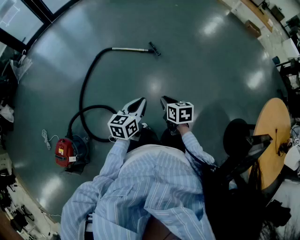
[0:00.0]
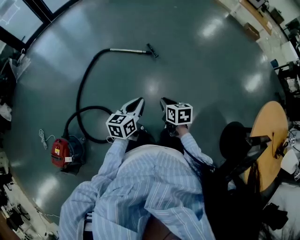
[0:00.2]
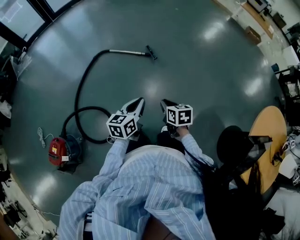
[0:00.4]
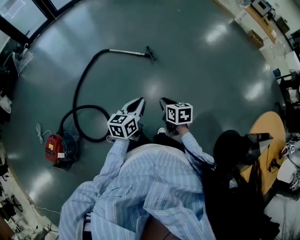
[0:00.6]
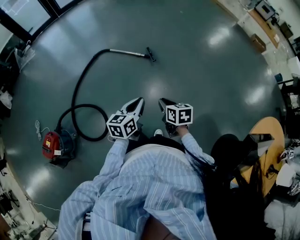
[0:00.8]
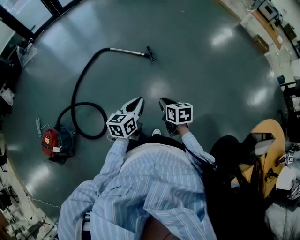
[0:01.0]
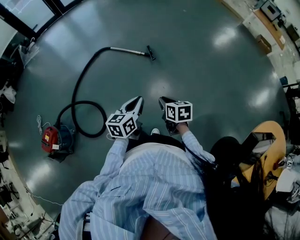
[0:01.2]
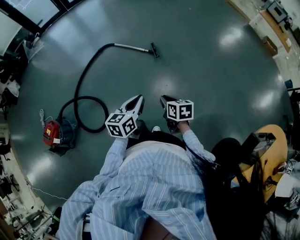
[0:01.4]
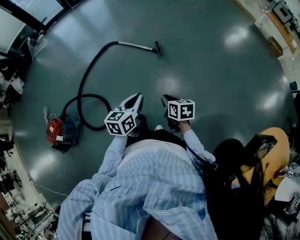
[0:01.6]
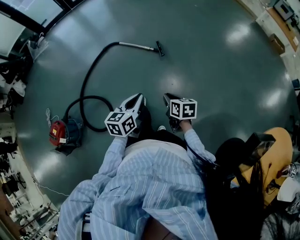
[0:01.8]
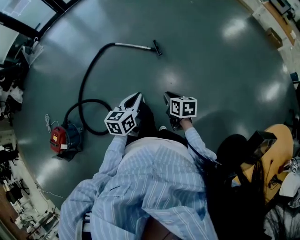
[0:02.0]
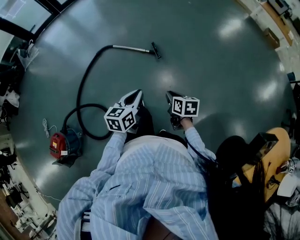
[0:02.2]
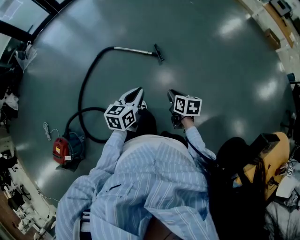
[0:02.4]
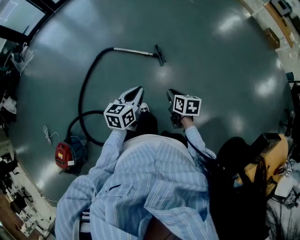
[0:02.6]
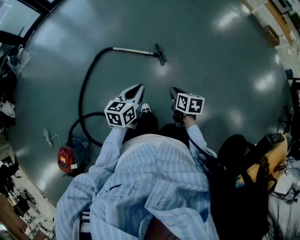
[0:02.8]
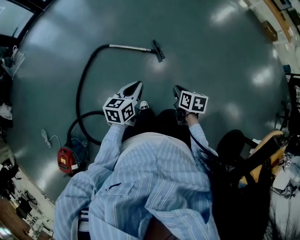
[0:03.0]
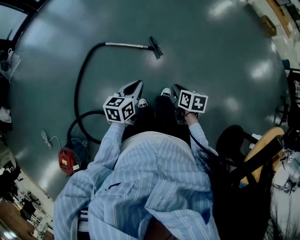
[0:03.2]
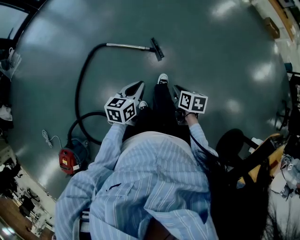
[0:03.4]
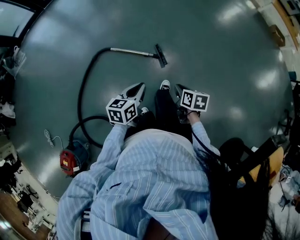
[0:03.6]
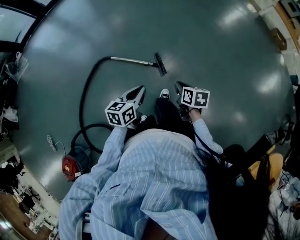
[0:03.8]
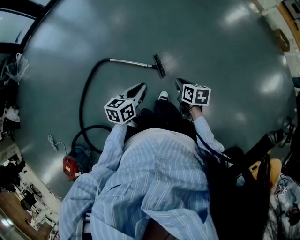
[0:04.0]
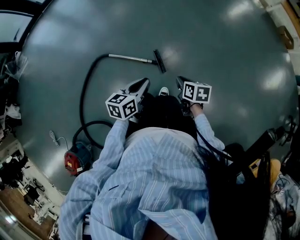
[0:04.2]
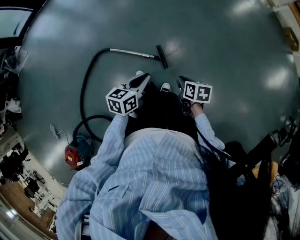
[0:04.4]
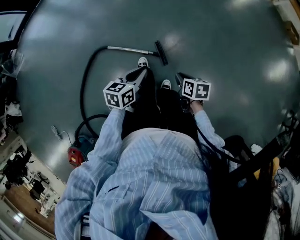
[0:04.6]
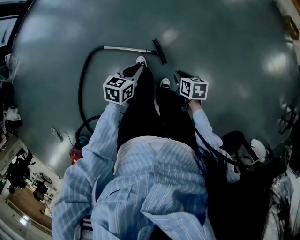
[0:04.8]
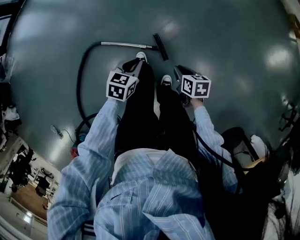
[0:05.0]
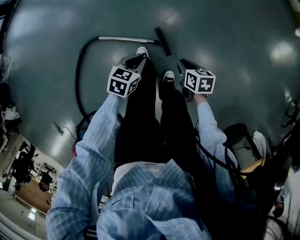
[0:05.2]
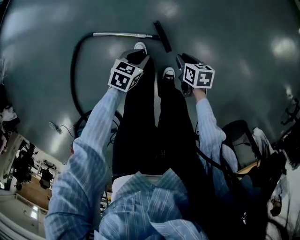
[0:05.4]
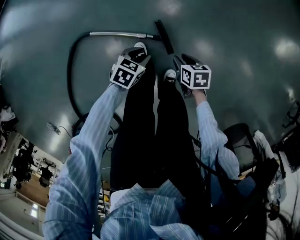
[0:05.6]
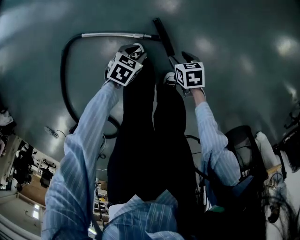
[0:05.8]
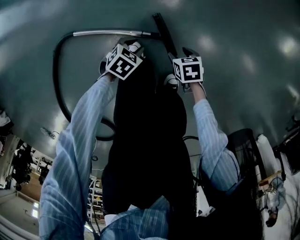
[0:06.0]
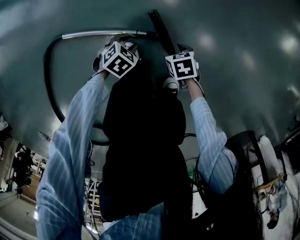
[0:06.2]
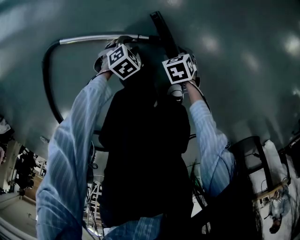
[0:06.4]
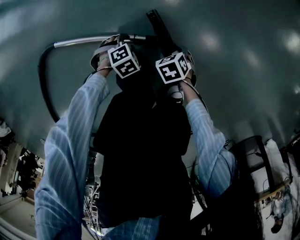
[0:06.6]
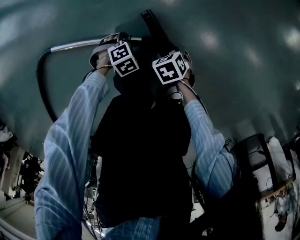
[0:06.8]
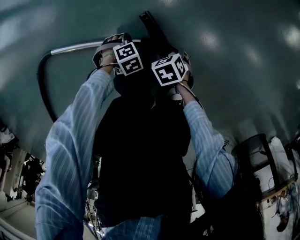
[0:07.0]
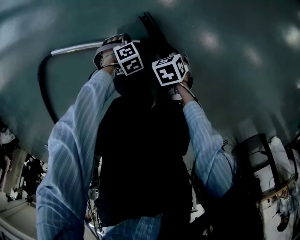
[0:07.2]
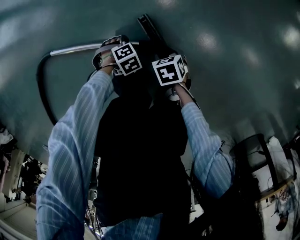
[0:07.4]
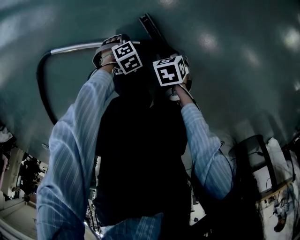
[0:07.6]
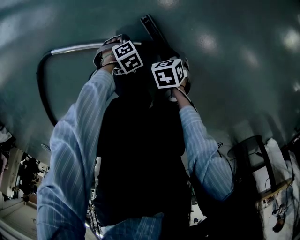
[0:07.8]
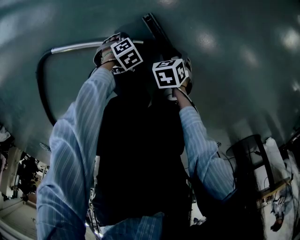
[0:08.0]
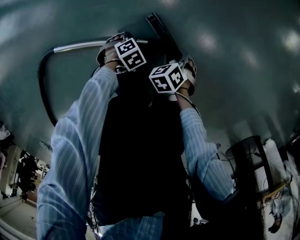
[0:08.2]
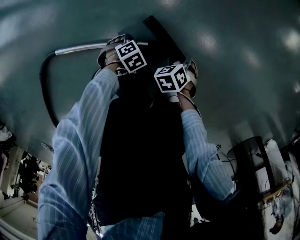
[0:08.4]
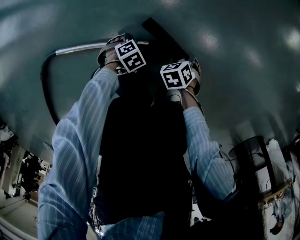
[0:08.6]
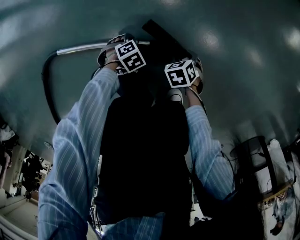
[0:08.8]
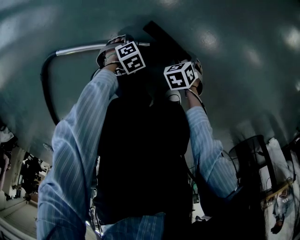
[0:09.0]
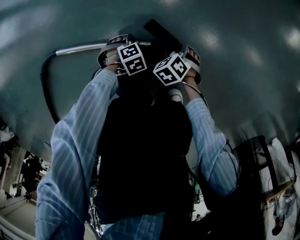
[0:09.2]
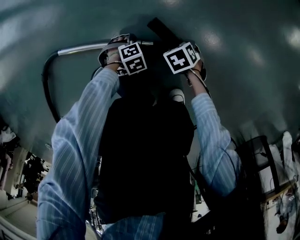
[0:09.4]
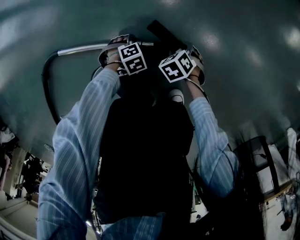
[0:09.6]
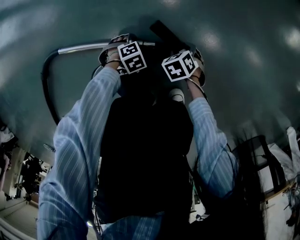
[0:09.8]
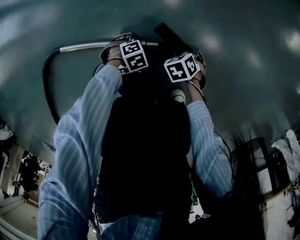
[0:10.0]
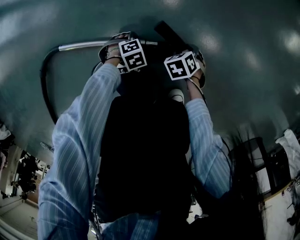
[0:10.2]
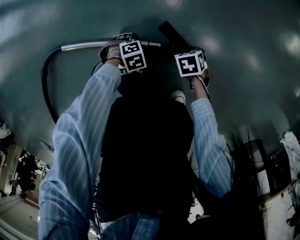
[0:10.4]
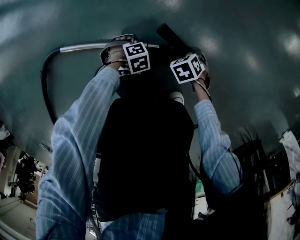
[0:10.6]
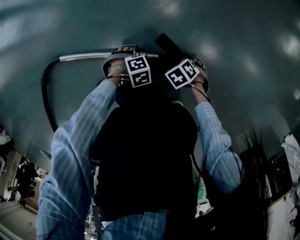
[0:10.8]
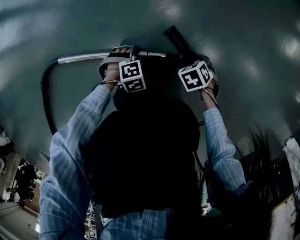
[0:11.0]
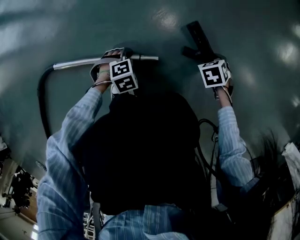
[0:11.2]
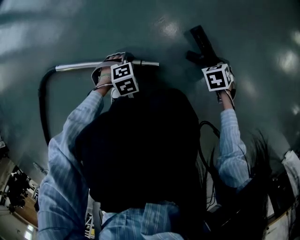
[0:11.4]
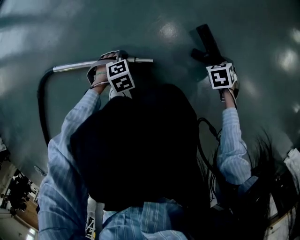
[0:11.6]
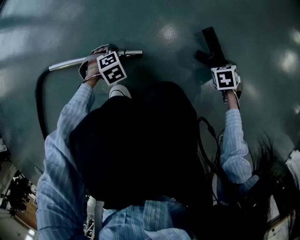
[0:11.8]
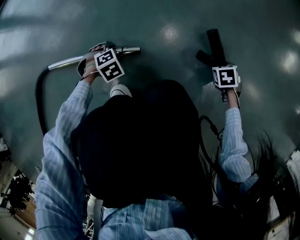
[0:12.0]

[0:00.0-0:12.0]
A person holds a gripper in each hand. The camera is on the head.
0:00.0 to 0:01.6: Both grippers move to the right, about 20 cm.
0:01.6 to 0:03.0: The grippers both shift forward by about 30 cm. The right gripper rotates approximately 20 degrees.
0:03.0 to 0:04.4: The two grippers go approximately 30 cm forward.
0:04.4 to 0:06.0: The two grippers go approximately 50 cm downward. The right gripper rotates some 20 degrees, and opens up. The left gripper points its fingers some 30 degrees further downward, and opens.
0:06.0 to 0:07.6: Both grippers move downward, roughly 20 cm. The left gripper changes its angle by about 40 degrees.
0:09.0 to 0:10.4: The grippers stay close to where they were, moving slightly.
0:10.4 to 0:12.0: The left gripper changes place by roughly 10 cm; the right gripper shifts by about 25 cm.

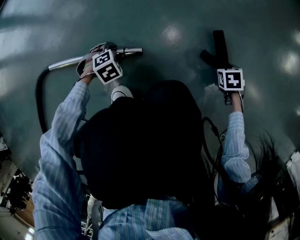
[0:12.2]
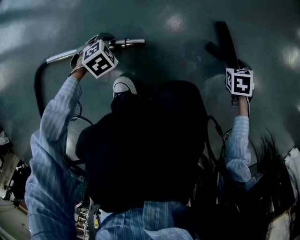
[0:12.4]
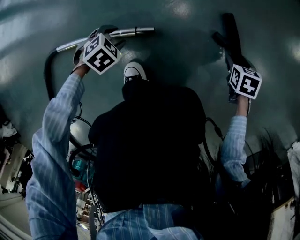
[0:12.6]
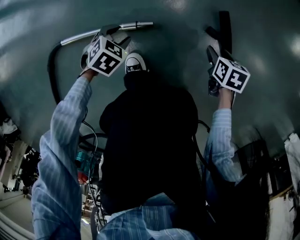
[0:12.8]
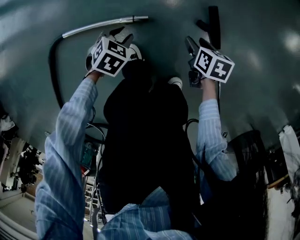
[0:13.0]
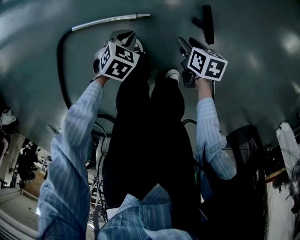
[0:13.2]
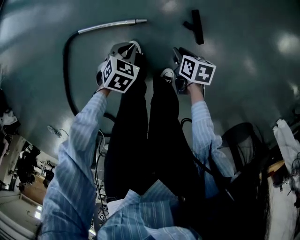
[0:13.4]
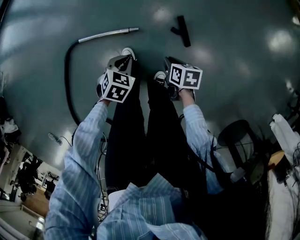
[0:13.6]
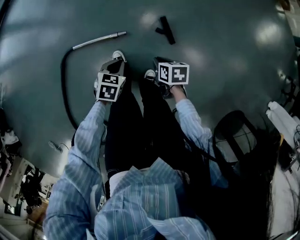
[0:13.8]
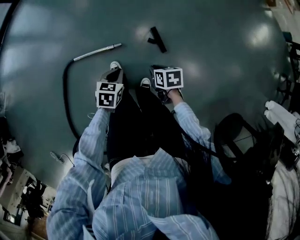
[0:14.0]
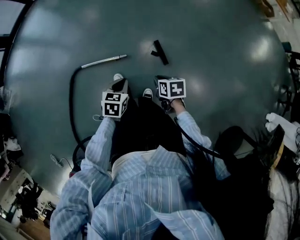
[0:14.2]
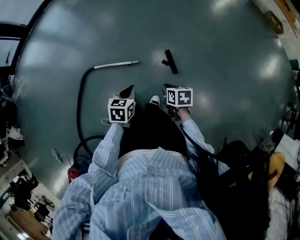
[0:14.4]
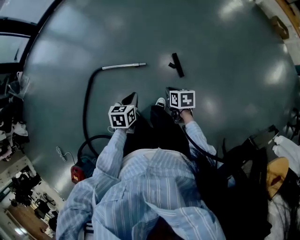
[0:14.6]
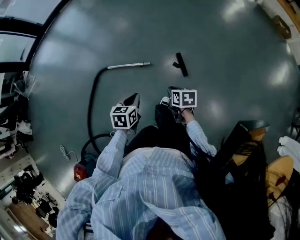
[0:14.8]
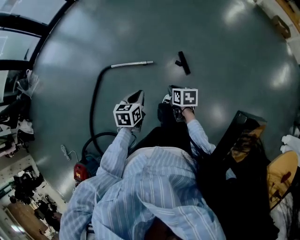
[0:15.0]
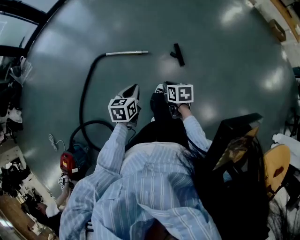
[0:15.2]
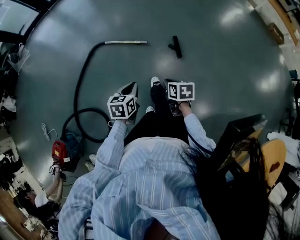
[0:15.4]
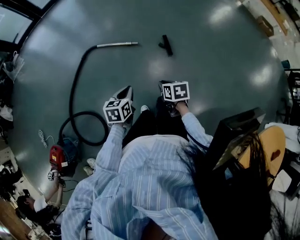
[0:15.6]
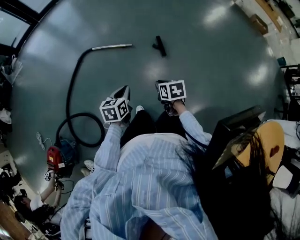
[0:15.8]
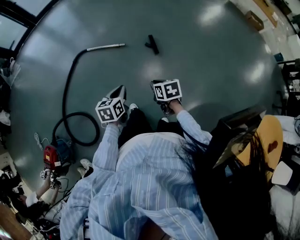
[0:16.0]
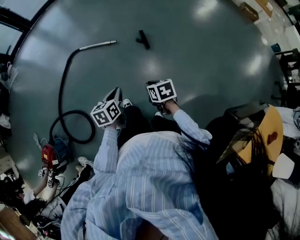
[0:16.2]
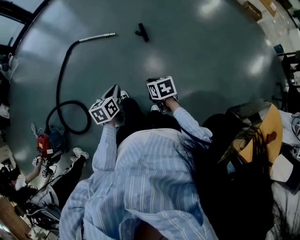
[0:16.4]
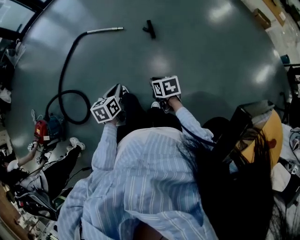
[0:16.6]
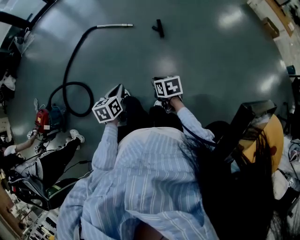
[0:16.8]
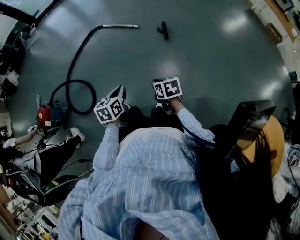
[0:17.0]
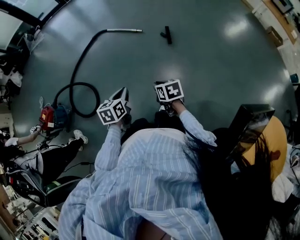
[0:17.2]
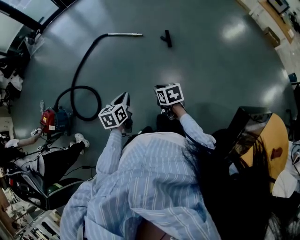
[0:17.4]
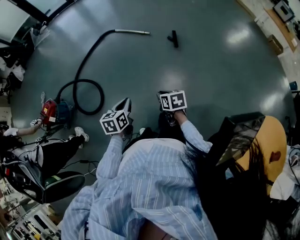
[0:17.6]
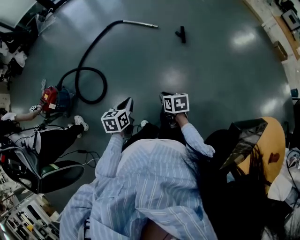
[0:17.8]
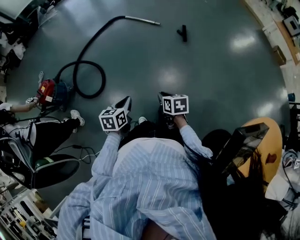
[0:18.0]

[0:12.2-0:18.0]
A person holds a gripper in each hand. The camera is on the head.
0:12.2 to 0:13.6: The two grippers go about 50 cm upward. The right gripper swivels about 40 degrees, and closes up, while the left gripper swivels about 40 degrees, and closes up.
0:13.6 to 0:15.0: The grippers both shift upward and backward by roughly 35 cm. The left gripper changes its angle by about 40 degrees.
0:15.0 to 0:16.6: The two grippers travel together, backward, approximately 50 cm. The left gripper changes its angle by about 20 degrees.
0:16.6 to 0:18.0: Both grippers travel together to the left and backward, about 30 cm.

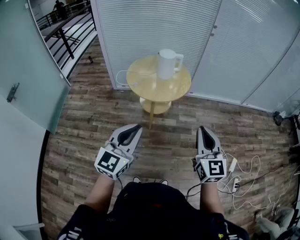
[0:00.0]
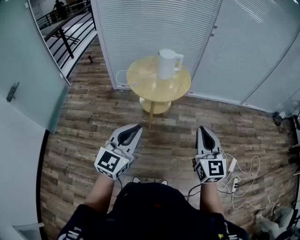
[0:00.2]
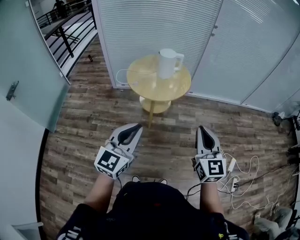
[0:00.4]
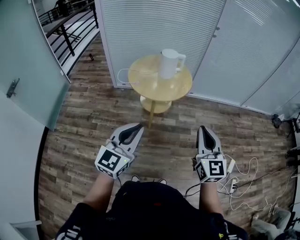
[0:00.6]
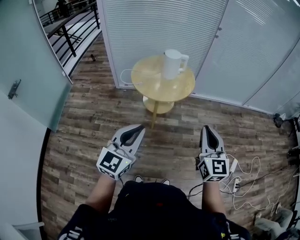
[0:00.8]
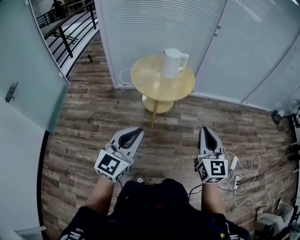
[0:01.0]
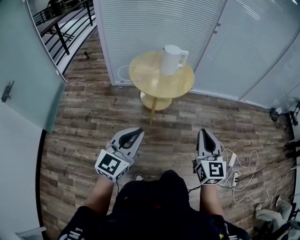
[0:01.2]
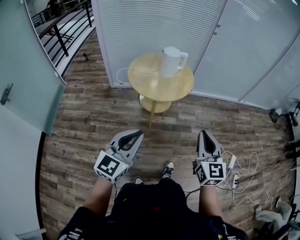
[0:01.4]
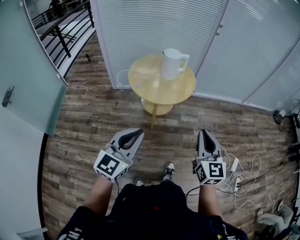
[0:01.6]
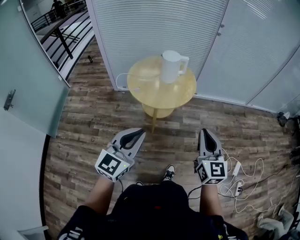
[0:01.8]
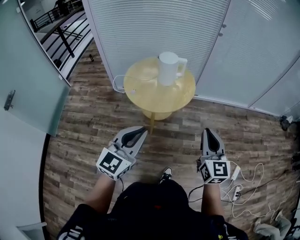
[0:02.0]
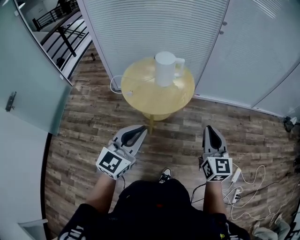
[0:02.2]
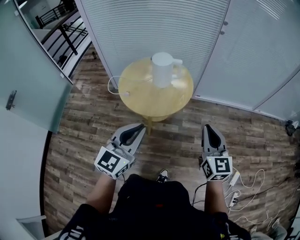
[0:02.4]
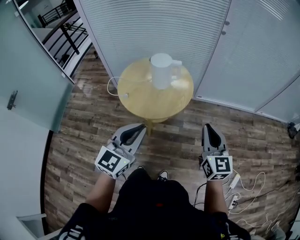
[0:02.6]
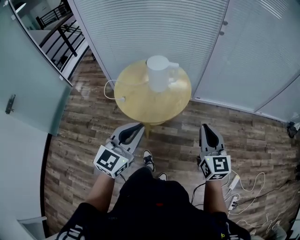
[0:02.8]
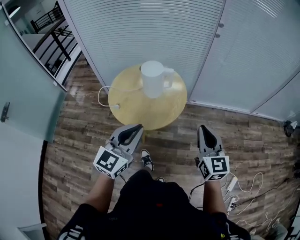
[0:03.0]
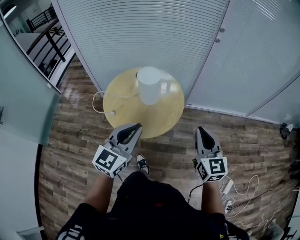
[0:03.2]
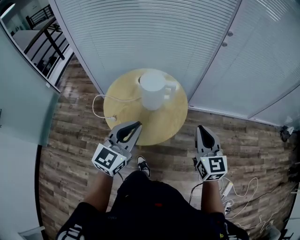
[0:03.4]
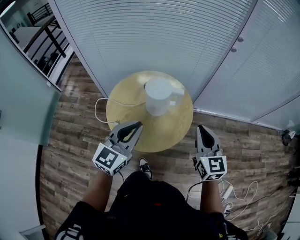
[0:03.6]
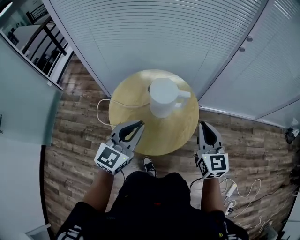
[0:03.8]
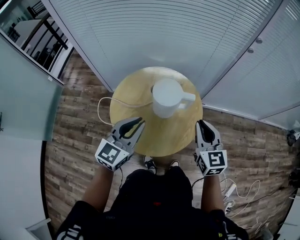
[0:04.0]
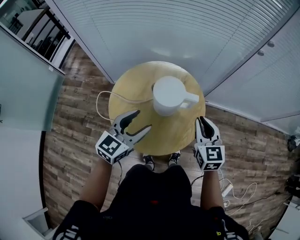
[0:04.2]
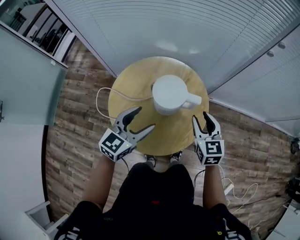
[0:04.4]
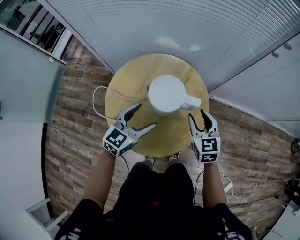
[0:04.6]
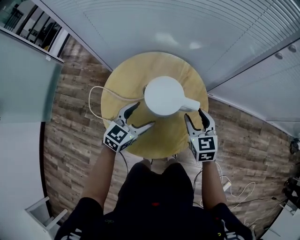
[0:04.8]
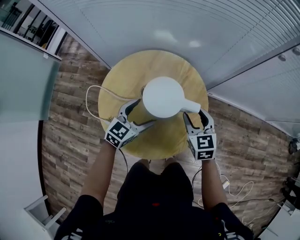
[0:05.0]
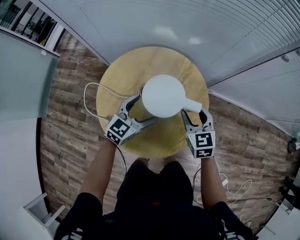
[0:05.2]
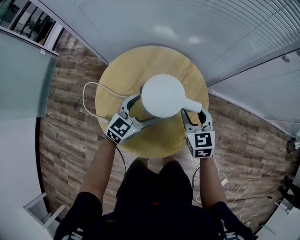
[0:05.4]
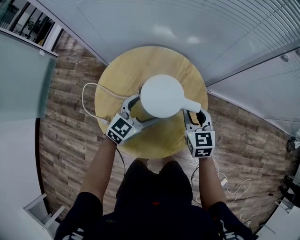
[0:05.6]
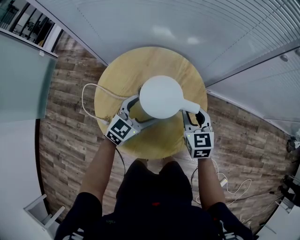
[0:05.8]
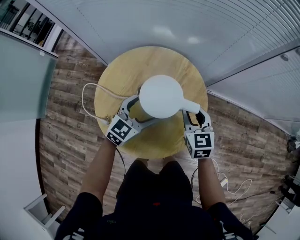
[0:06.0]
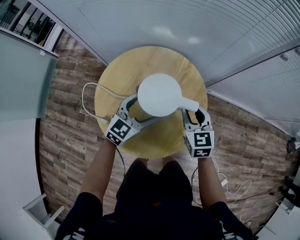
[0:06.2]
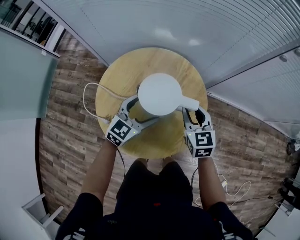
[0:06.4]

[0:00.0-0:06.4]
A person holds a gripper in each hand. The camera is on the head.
0:00.0 to 0:01.6: The two grippers go approximately 5 cm to the left.
0:01.6 to 0:03.2: The two grippers go approximately 40 cm forward.
0:03.2 to 0:04.8: The right gripper heads forward, downward and to the left, covering approximately 40 cm, changes its angle by roughly 30 degrees, and opens up, while the left gripper moves forward and downward, some 35 cm, changes its angle by roughly 20 degrees, and opens its fingers.
0:04.8 to 0:06.4: The left gripper shifts by roughly 5 cm.
